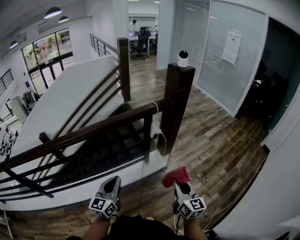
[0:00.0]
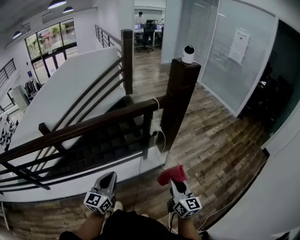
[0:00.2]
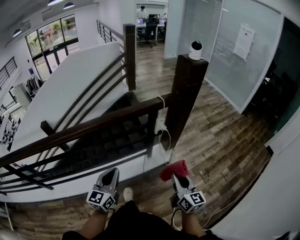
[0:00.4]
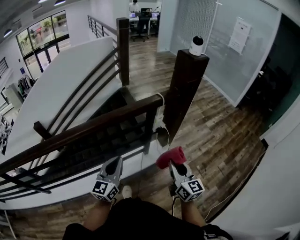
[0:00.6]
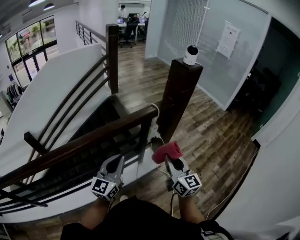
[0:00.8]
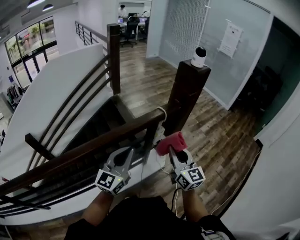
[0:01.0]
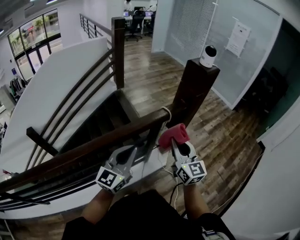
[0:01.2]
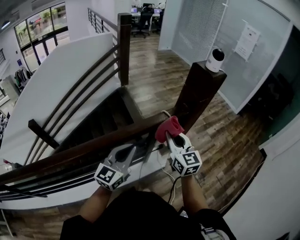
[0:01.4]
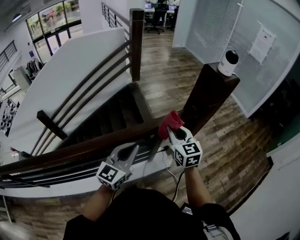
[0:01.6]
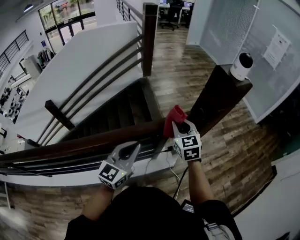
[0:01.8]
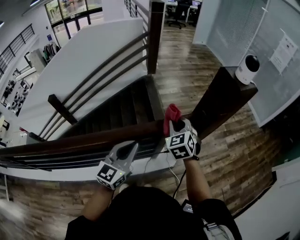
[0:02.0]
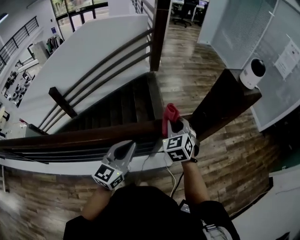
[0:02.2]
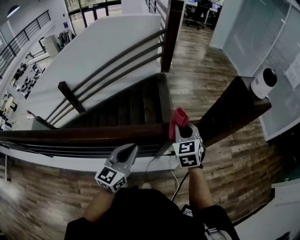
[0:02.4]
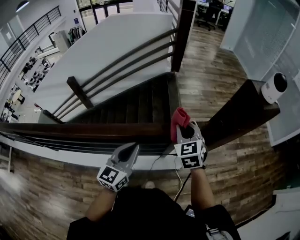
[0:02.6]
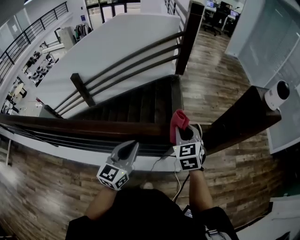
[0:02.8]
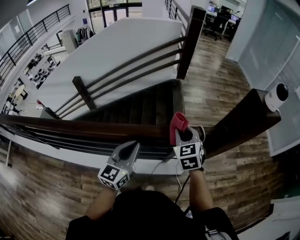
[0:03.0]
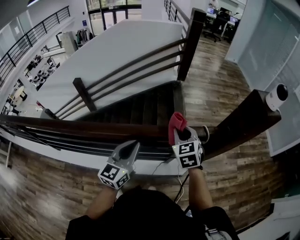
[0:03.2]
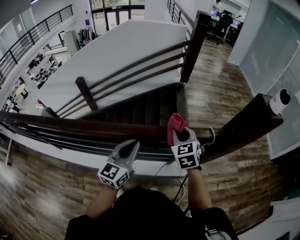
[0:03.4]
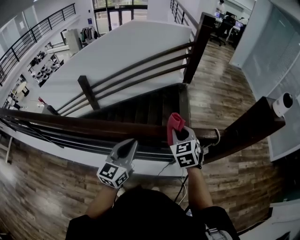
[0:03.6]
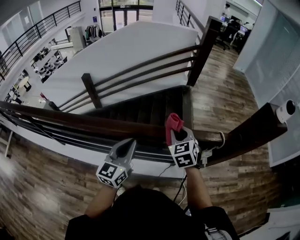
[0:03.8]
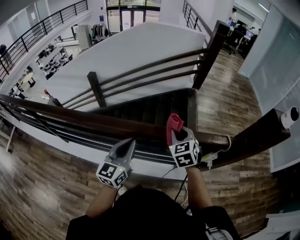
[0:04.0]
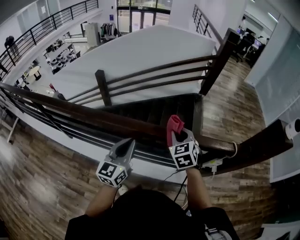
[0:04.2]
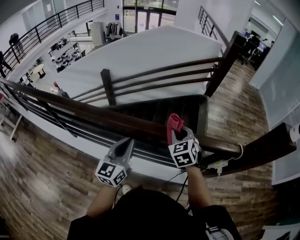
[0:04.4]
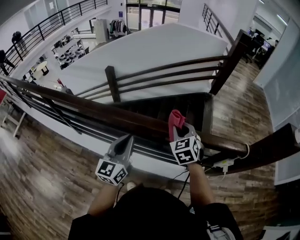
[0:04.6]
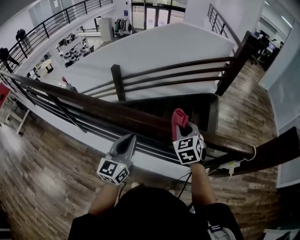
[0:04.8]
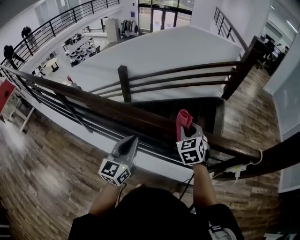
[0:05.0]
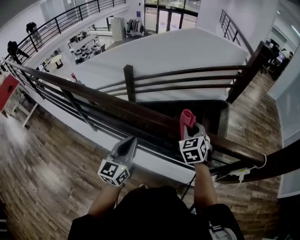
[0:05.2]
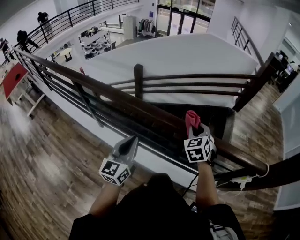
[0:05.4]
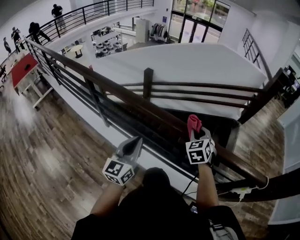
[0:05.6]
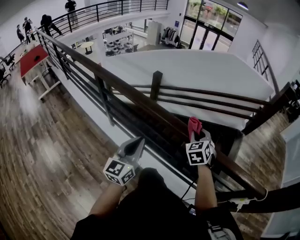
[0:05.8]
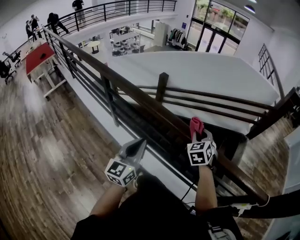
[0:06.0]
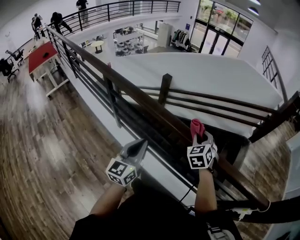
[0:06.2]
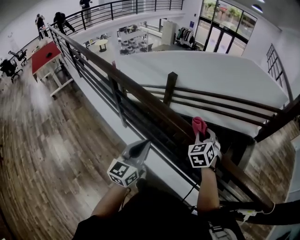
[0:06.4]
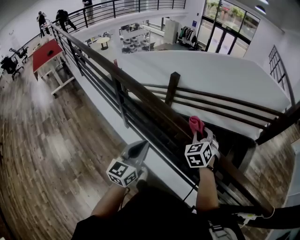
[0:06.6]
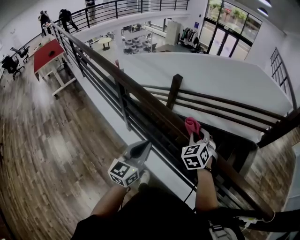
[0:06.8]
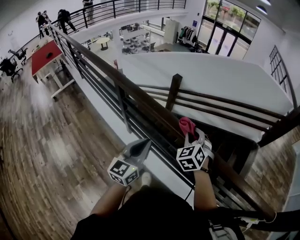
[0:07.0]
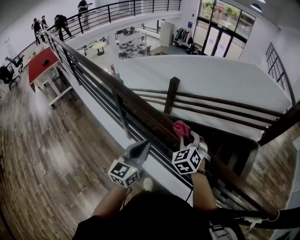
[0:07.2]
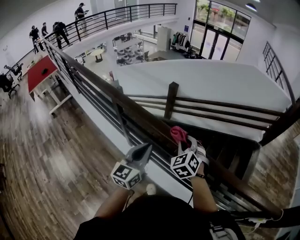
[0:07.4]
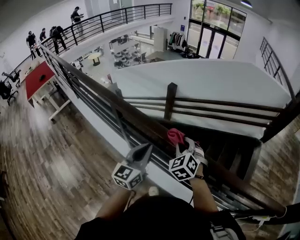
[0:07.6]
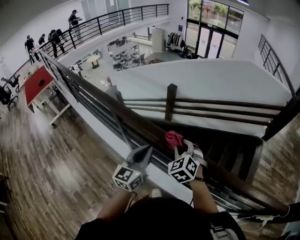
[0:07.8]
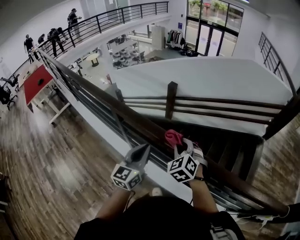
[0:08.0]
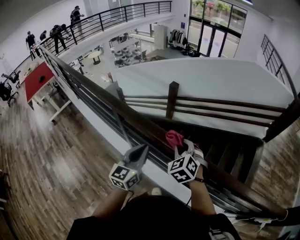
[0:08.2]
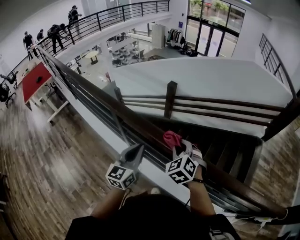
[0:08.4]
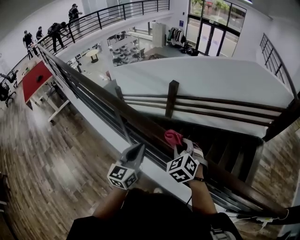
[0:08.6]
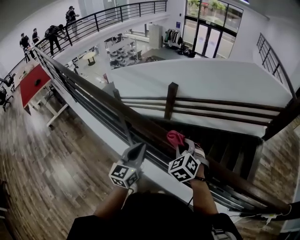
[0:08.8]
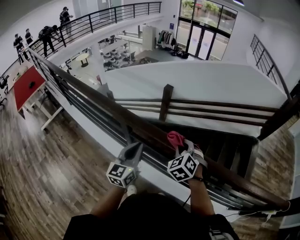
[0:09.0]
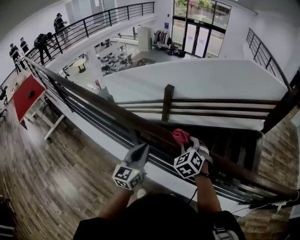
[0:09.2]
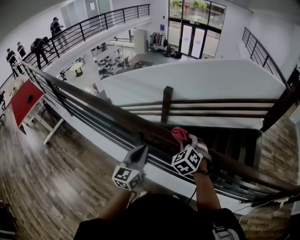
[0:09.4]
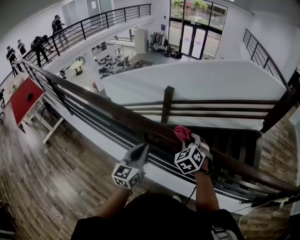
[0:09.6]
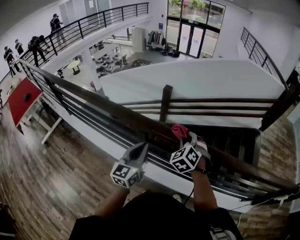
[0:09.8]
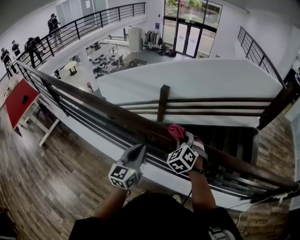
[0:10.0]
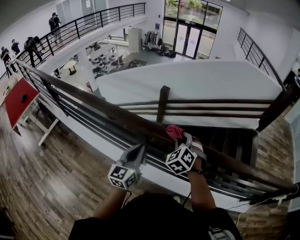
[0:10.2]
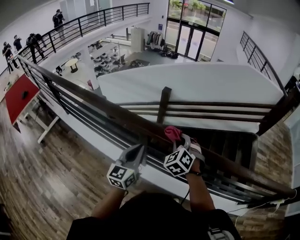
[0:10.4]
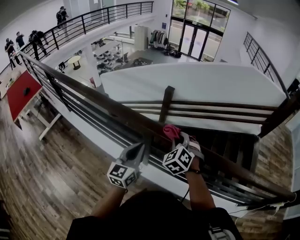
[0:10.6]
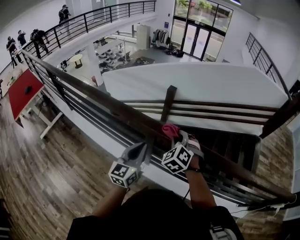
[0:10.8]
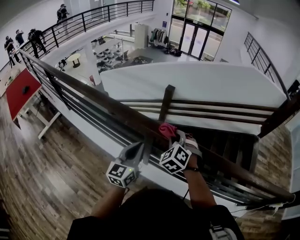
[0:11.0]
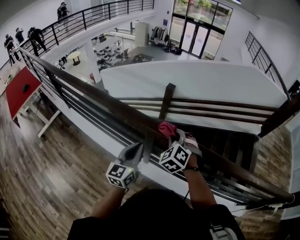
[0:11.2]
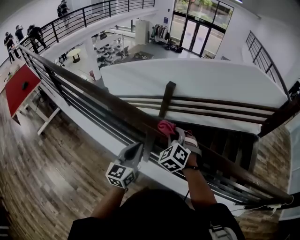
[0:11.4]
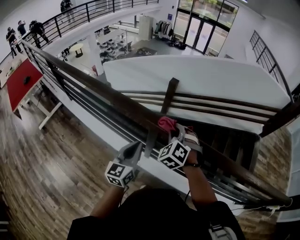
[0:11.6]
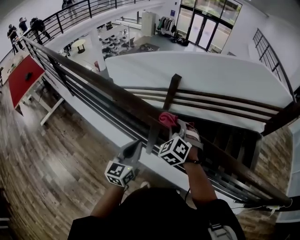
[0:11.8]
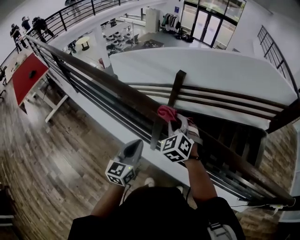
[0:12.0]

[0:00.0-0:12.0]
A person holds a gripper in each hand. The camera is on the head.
0:00.0 to 0:01.6: Both grippers move forward, about 35 cm. The right gripper swivels approximately 20 degrees.
0:01.6 to 0:03.0: The grippers both shift to the left by about 10 cm. The right gripper rotates some 30 degrees. Meanwhile the left gripper swivels about 30 degrees.
0:03.0 to 0:04.4: The grippers both shift to the left by roughly 25 cm.
0:04.4 to 0:06.0: Both grippers travel together to the left, about 25 cm. The left gripper turns by some 20 degrees.
0:06.0 to 0:07.6: The left gripper moves to the left and forward, some 20 cm; the right gripper is displaced to the left by some 25 cm.
0:07.6 to 0:09.0: The right gripper heads to the left, covering some 10 cm; the left gripper moves to the left and forward, some 15 cm.
0:09.0 to 0:10.4: Both grippers move to the left, some 10 cm.
0:10.4 to 0:12.0: The right gripper shifts approximately 10 cm to the left. The left gripper travels to the left by about 5 cm.

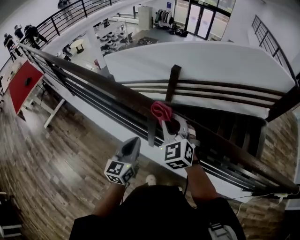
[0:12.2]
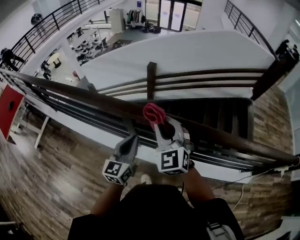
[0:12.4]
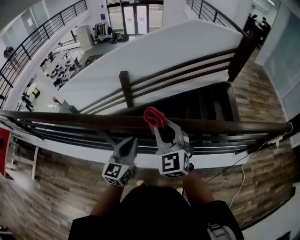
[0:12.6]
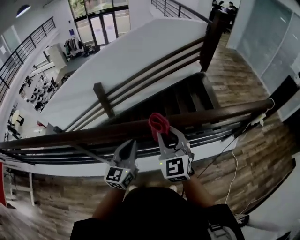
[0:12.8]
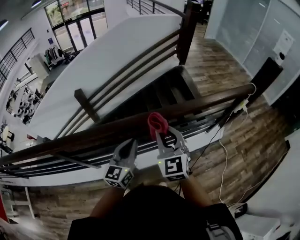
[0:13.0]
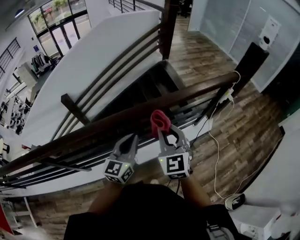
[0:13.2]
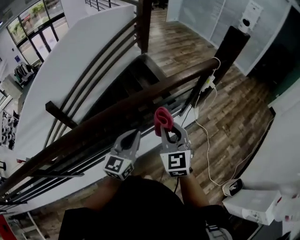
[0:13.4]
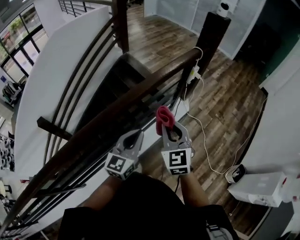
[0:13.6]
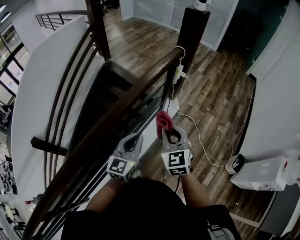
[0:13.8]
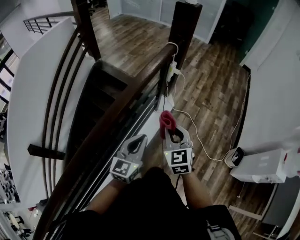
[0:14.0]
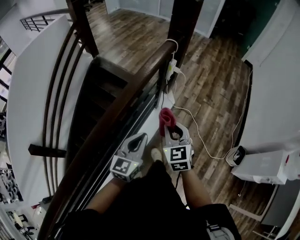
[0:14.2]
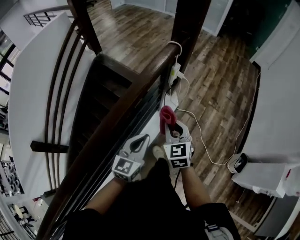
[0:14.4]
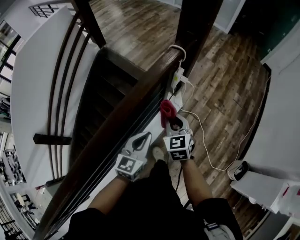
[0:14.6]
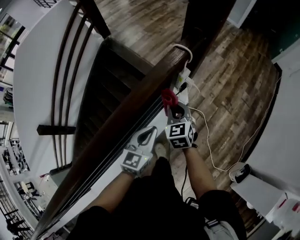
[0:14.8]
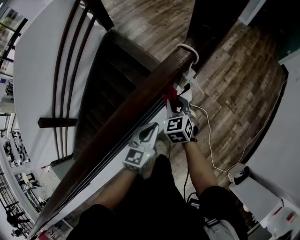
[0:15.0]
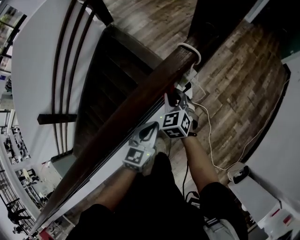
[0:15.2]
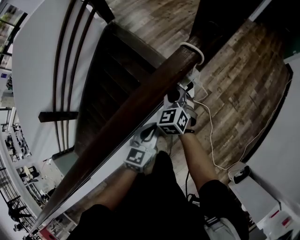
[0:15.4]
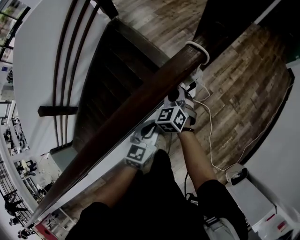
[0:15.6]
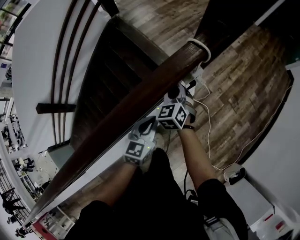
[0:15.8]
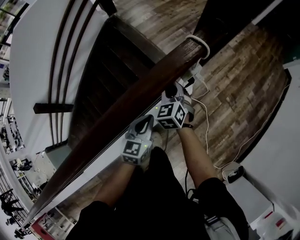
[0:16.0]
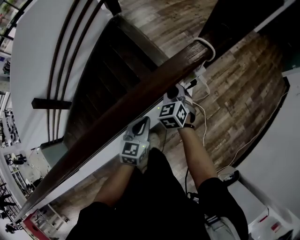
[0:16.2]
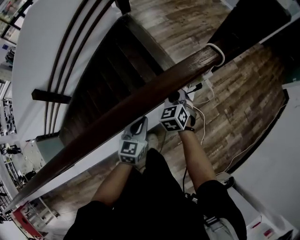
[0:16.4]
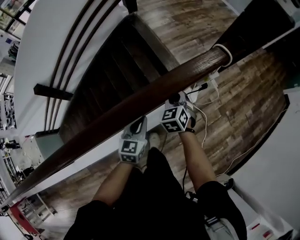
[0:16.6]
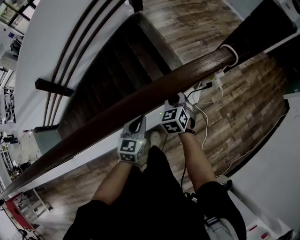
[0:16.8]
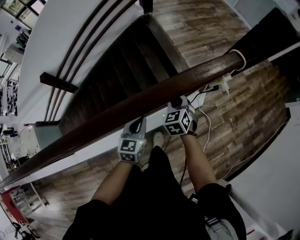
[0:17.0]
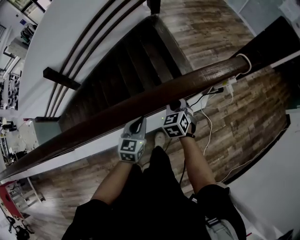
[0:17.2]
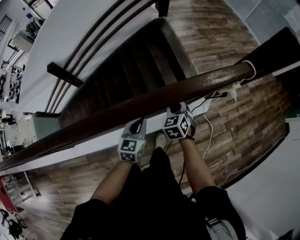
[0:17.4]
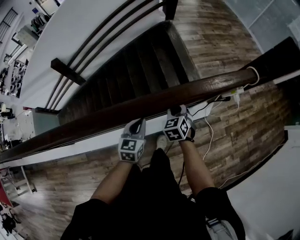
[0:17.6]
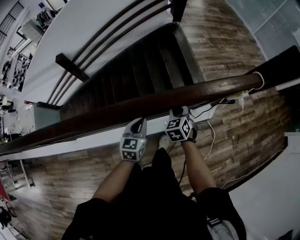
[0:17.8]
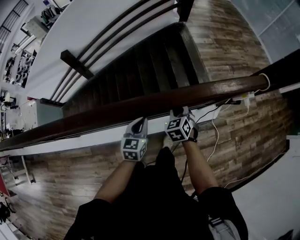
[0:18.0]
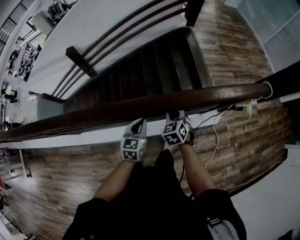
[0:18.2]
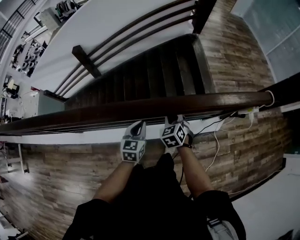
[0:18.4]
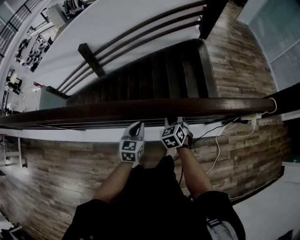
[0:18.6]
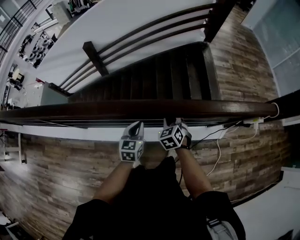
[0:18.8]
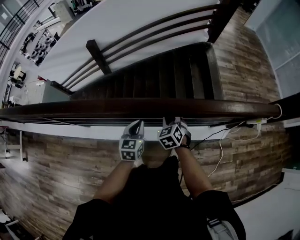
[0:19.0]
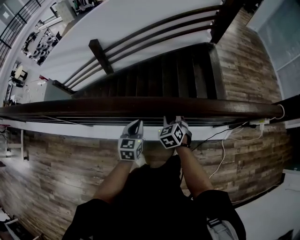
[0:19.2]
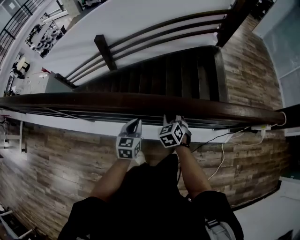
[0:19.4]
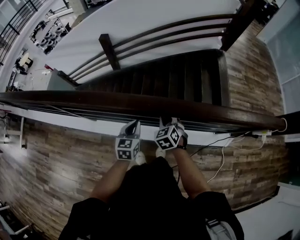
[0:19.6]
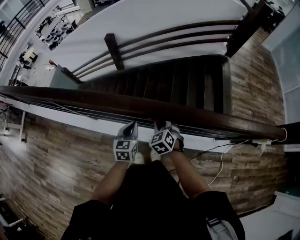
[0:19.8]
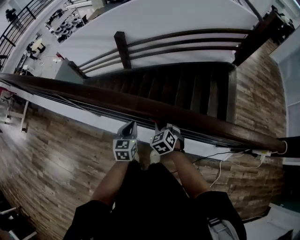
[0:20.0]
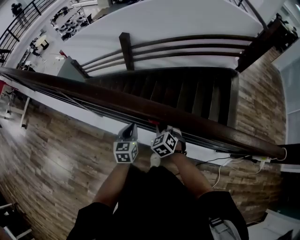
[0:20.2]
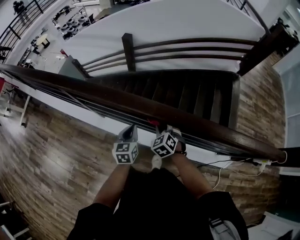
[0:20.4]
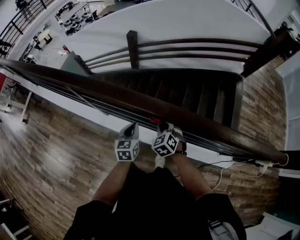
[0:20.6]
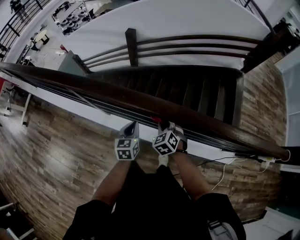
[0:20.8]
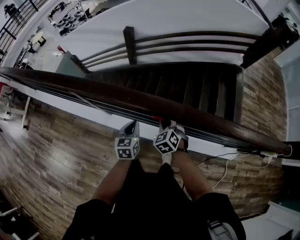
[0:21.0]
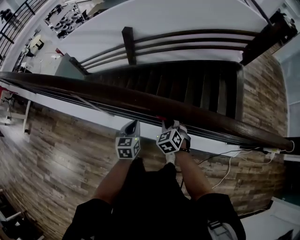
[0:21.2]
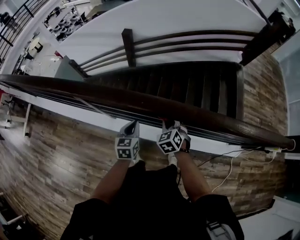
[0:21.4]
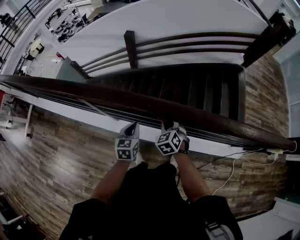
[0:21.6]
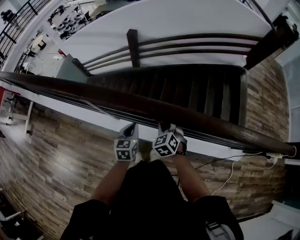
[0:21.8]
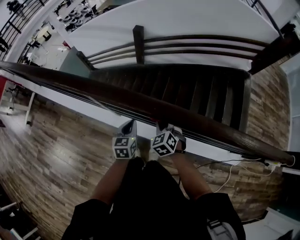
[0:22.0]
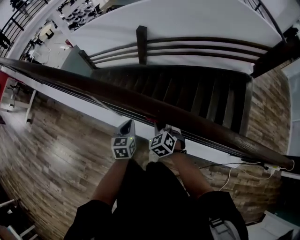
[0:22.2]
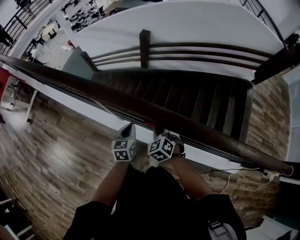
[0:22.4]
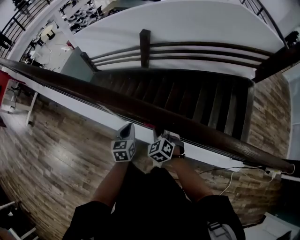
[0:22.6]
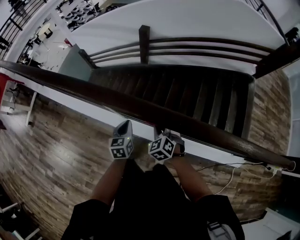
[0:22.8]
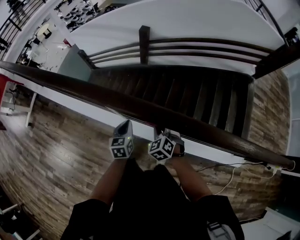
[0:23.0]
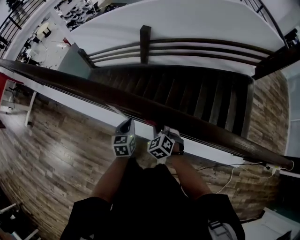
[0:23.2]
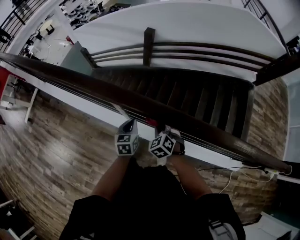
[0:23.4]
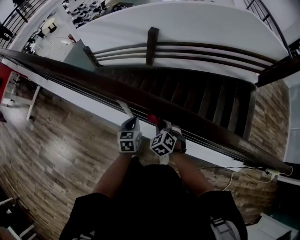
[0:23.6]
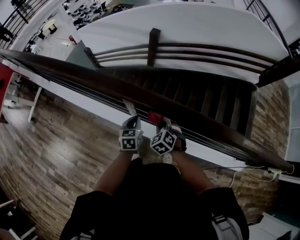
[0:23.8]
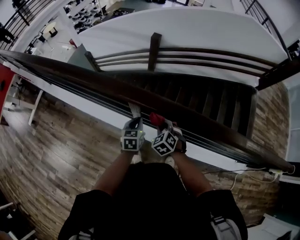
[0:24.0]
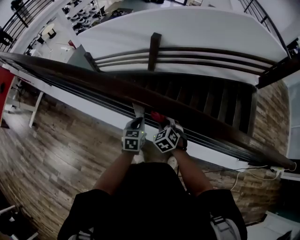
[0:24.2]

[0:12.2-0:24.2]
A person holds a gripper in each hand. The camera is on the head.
0:12.2 to 0:13.8: The two grippers travel together, some 70 cm. The right gripper swivels about 90 degrees. Meanwhile the left gripper rotates some 90 degrees.
0:13.8 to 0:15.2: Both grippers travel together forward and downward, some 35 cm.
0:15.2 to 0:16.6: The left gripper shifts about 10 cm to the left, and swivels roughly 20 degrees, while the right gripper is displaced to the left by roughly 5 cm.
0:16.6 to 0:18.2: Both grippers travel together to the left and backward, approximately 25 cm. The right gripper rotates approximately 20 degrees; the left gripper changes its angle by some 20 degrees.
0:18.2 to 0:19.8: The grippers both shift to the left by about 20 cm. The left gripper changes its angle by some 20 degrees. Meanwhile the right gripper turns by some 30 degrees.
0:19.8 to 0:21.2: The two grippers go about 15 cm to the left.
0:21.2 to 0:22.6: Both grippers travel together to the left, approximately 15 cm.
0:22.6 to 0:24.2: The two grippers go about 15 cm to the left and forward.
